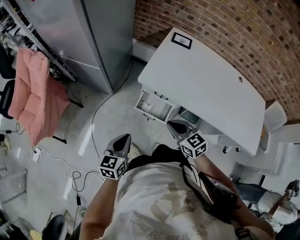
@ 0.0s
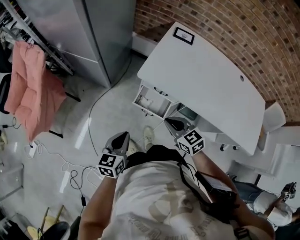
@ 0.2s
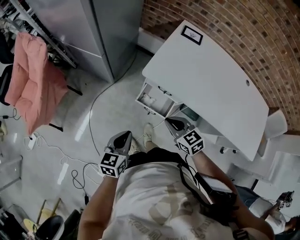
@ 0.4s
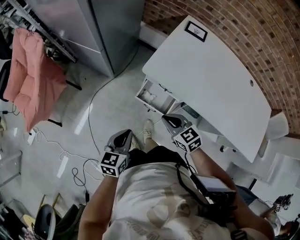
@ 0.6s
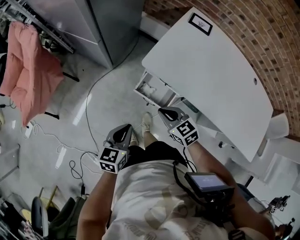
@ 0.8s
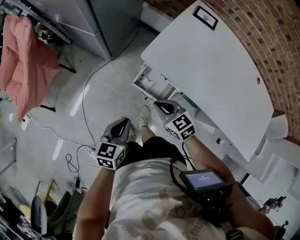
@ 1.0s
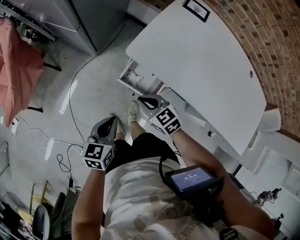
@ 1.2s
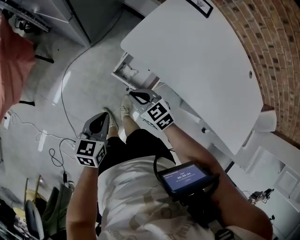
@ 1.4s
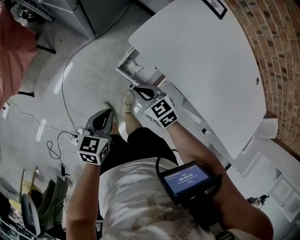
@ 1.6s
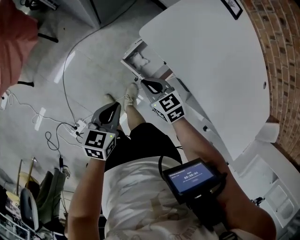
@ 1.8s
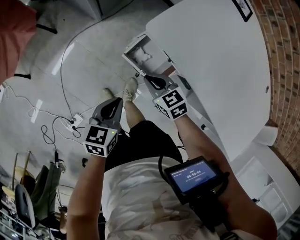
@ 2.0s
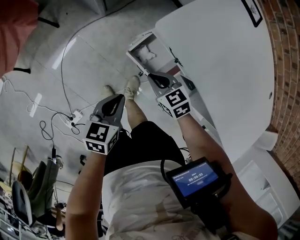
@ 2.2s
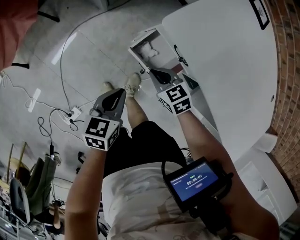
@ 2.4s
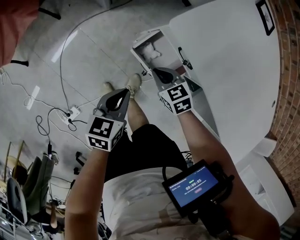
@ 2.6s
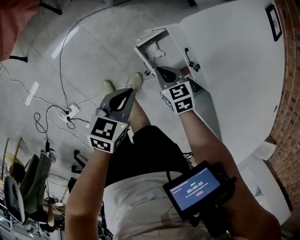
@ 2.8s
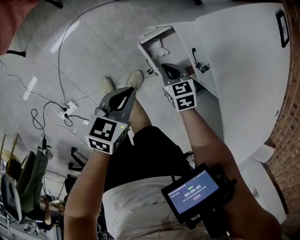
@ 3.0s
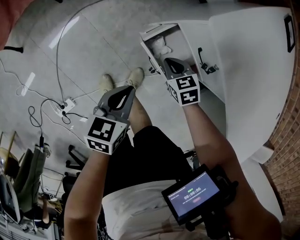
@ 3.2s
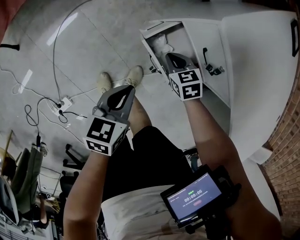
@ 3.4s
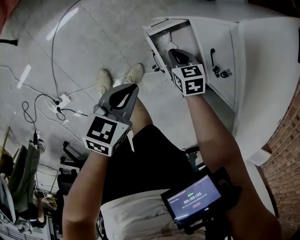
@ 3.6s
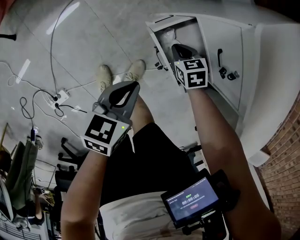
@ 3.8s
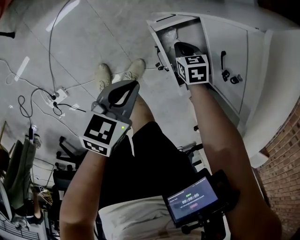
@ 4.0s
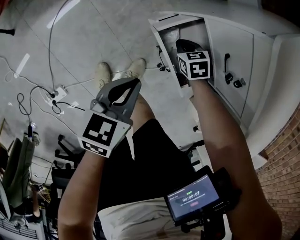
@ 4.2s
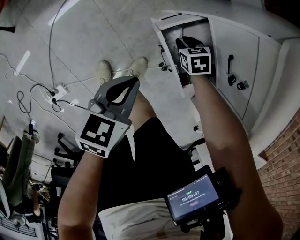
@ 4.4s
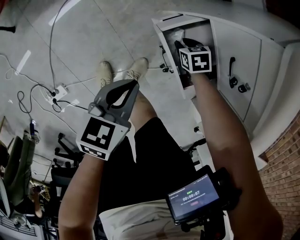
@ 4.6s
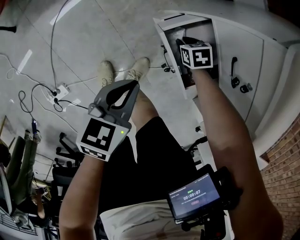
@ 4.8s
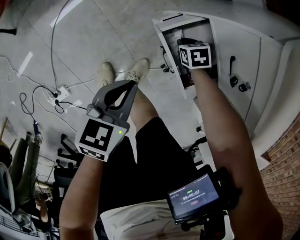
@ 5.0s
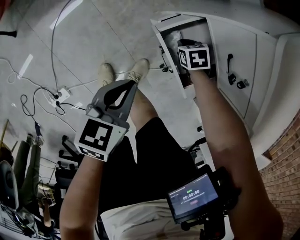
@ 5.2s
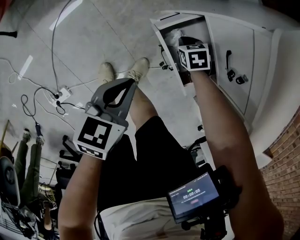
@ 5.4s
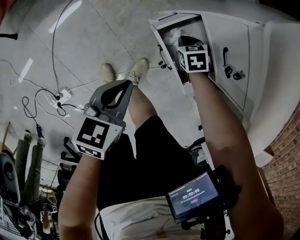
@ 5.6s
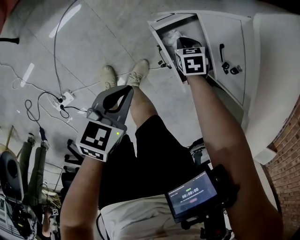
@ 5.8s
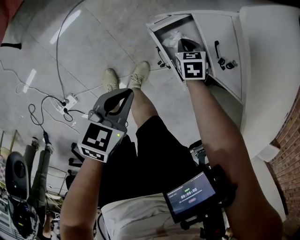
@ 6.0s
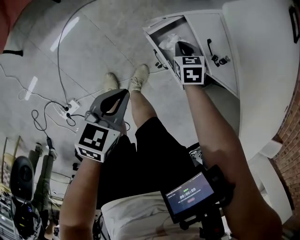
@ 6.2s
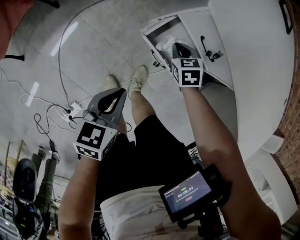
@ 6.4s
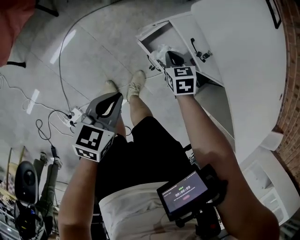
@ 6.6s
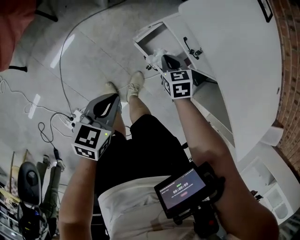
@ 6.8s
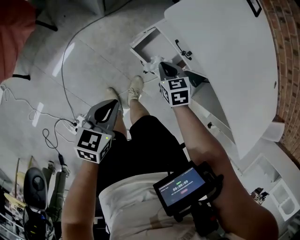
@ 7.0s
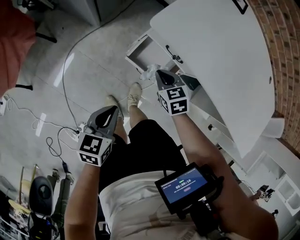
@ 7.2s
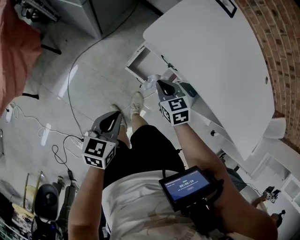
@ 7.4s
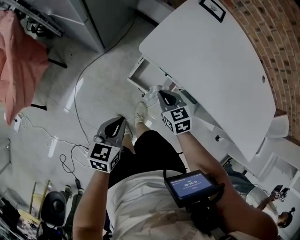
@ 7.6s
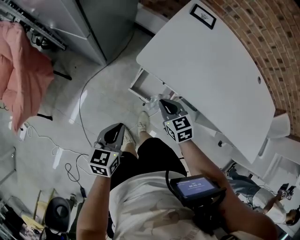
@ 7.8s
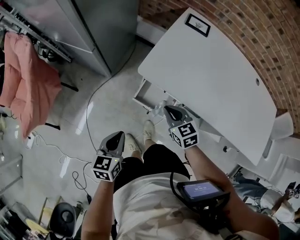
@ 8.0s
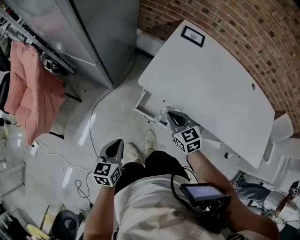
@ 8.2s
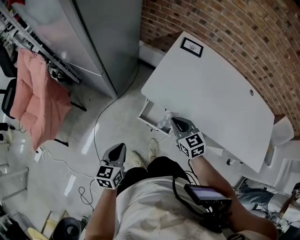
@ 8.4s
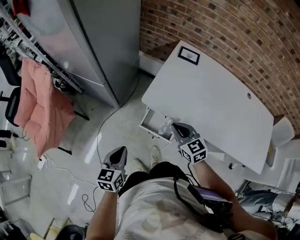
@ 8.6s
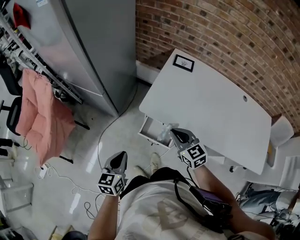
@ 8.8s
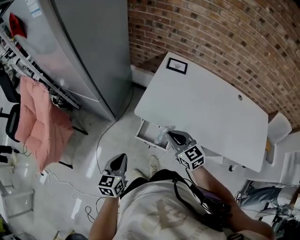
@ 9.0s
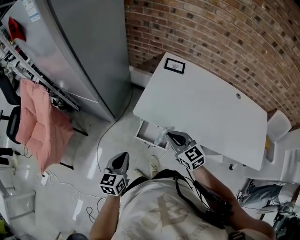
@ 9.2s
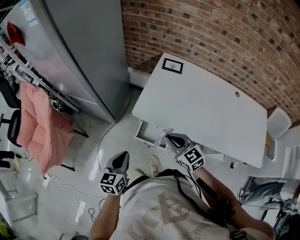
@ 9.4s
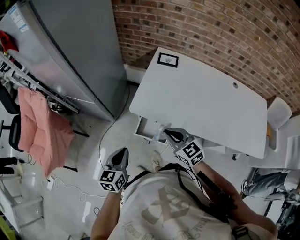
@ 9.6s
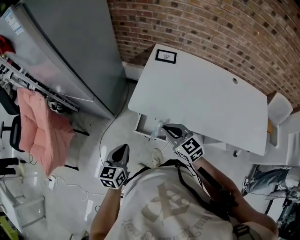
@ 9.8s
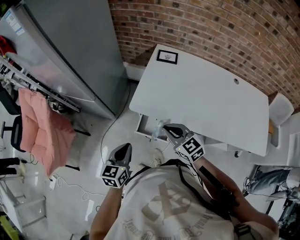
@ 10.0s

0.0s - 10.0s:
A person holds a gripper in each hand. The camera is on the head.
0.0s - 1.4s: The two grippers go some 15 cm downward and forward. The right gripper turns by approximately 20 degrees.
1.4s - 2.8s: The two grippers go roughly 15 cm downward.
2.8s - 4.2s: The left gripper moves downward, some 10 cm, while the right gripper travels downward by some 20 cm.
4.2s - 5.8s: The right gripper opens and closes again.
5.8s - 7.2s: The right gripper shifts about 25 cm upward, and turns by about 30 degrees, while the left gripper heads upward, covering about 15 cm.
7.2s - 8.6s: The left gripper moves upward, roughly 20 cm. Meanwhile the right gripper travels upward by some 30 cm, and changes its angle by about 30 degrees.
8.6s - 10.0s: The right gripper goes about 5 cm upward, while the left gripper heads to the right, covering roughly 5 cm.

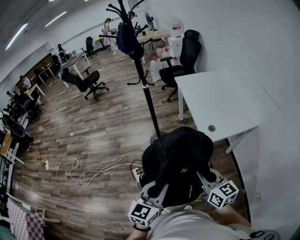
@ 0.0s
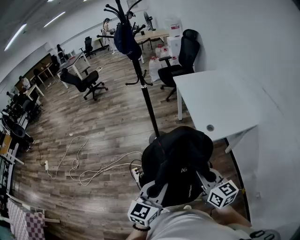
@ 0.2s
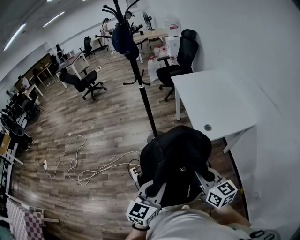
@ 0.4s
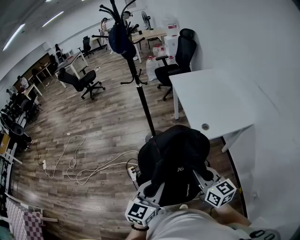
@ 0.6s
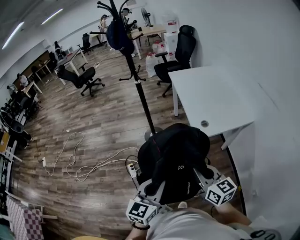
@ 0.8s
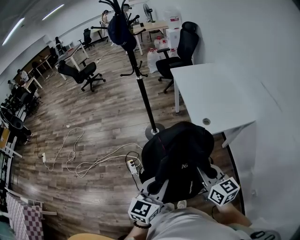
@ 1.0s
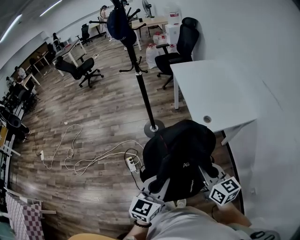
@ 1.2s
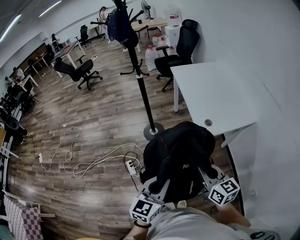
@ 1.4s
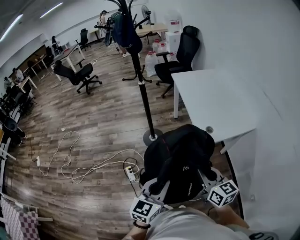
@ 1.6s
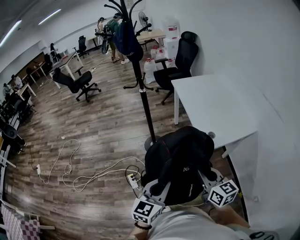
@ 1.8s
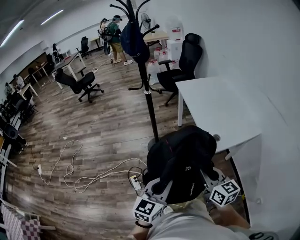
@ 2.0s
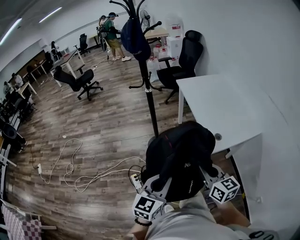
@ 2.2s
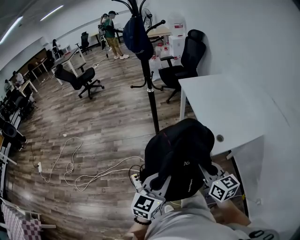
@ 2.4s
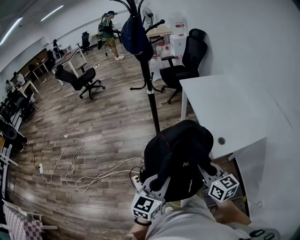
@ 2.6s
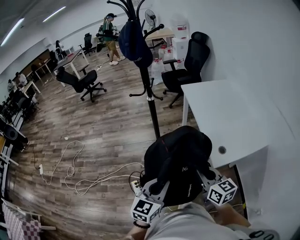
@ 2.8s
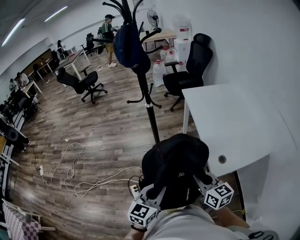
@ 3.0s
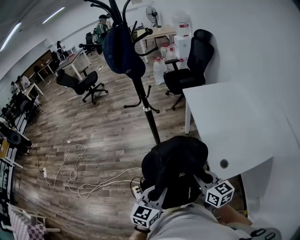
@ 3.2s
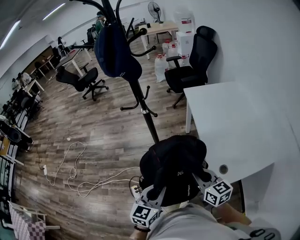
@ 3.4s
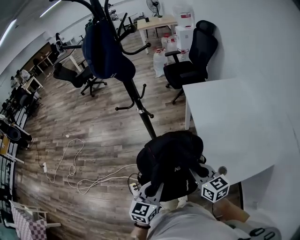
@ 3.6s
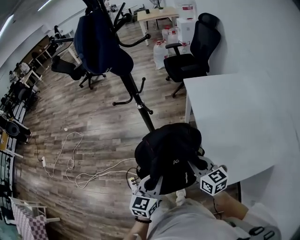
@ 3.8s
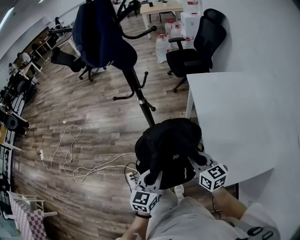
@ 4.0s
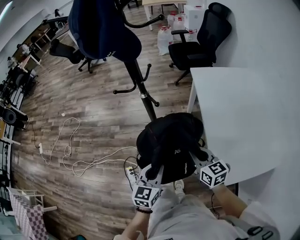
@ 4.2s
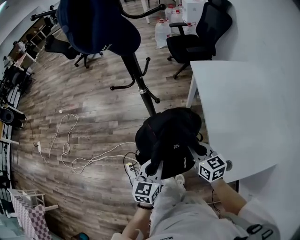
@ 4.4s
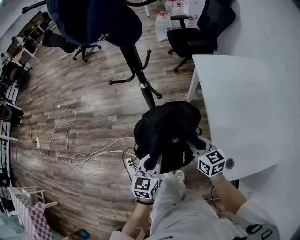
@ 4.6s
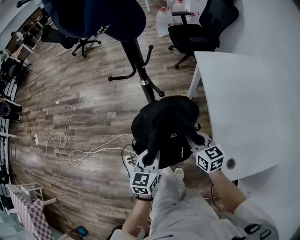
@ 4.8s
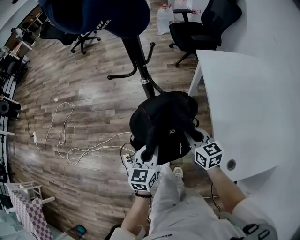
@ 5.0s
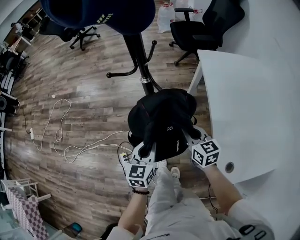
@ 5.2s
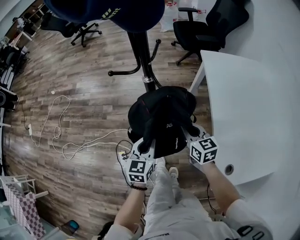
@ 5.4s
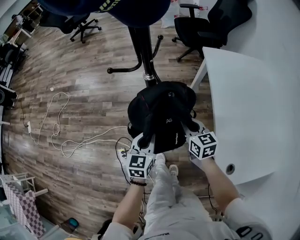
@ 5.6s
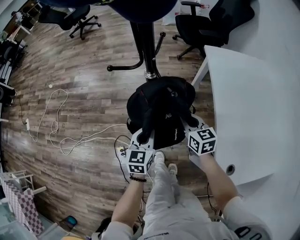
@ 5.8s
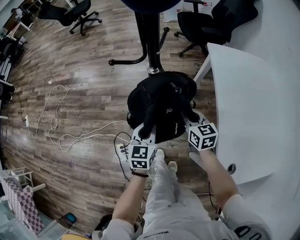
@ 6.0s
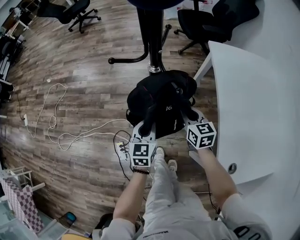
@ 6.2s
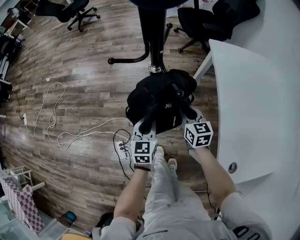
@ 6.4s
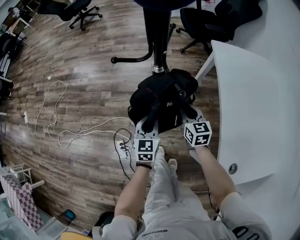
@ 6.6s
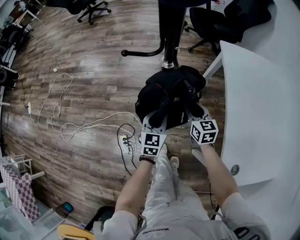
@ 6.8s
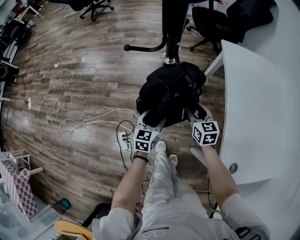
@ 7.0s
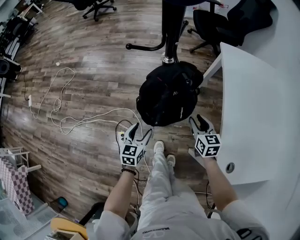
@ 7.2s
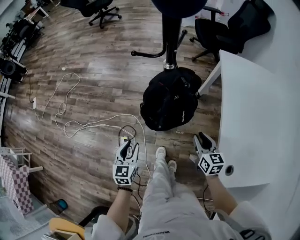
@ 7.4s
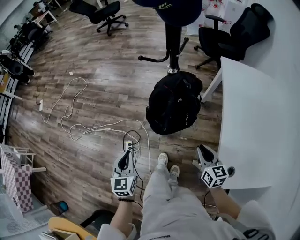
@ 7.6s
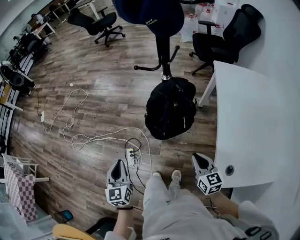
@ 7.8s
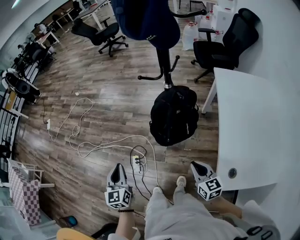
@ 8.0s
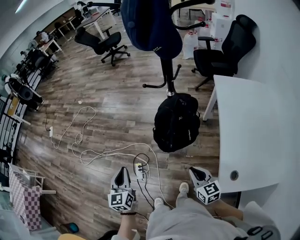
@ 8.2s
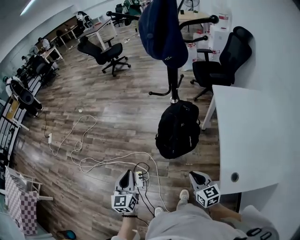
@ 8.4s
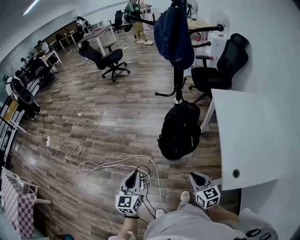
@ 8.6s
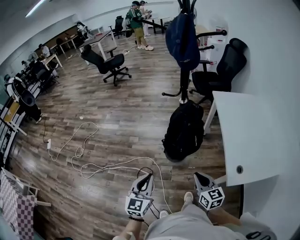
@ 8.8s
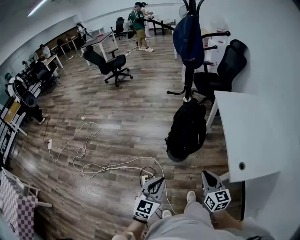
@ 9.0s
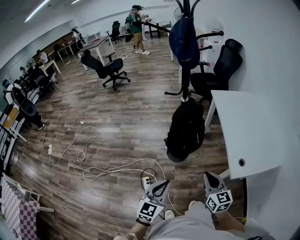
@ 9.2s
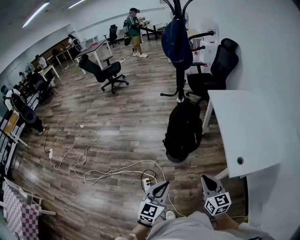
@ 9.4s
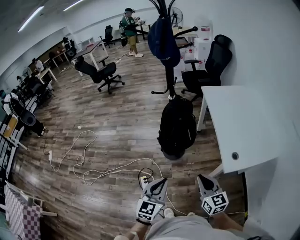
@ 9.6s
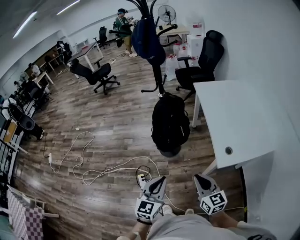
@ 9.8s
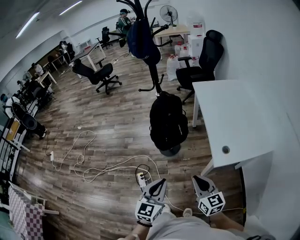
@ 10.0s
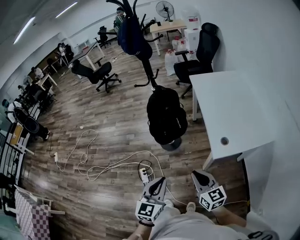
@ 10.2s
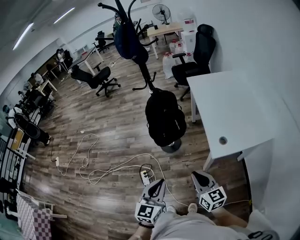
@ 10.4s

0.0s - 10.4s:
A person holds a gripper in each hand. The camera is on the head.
0.0s - 1.4s: The grippers stay close to where they were, moving slightly.
1.4s - 3.0s: The two grippers go roughly 25 cm forward.
3.0s - 4.4s: The left gripper moves forward and downward, some 25 cm; the right gripper is displaced forward by about 25 cm.
4.4s - 6.0s: The two grippers go approximately 20 cm forward and downward.
6.0s - 7.4s: The right gripper travels backward by about 15 cm, and opens its fingers, while the left gripper shifts roughly 20 cm backward and to the left, and opens its fingers.
7.4s - 9.0s: The left gripper moves roughly 30 cm, changes its angle by some 30 degrees, and closes up. The right gripper moves approximately 35 cm, and closes up.
9.0s - 10.4s: The left gripper moves to the right and backward, approximately 20 cm, while the right gripper shifts roughly 20 cm backward and to the right.

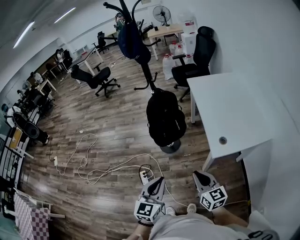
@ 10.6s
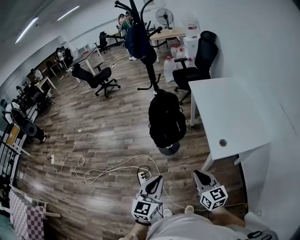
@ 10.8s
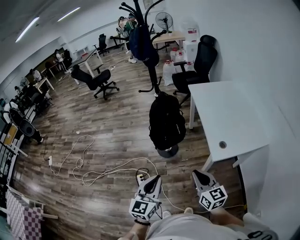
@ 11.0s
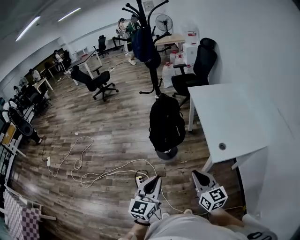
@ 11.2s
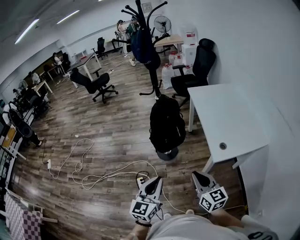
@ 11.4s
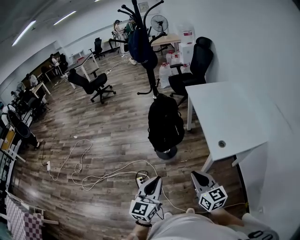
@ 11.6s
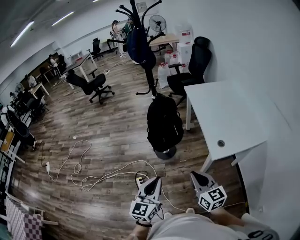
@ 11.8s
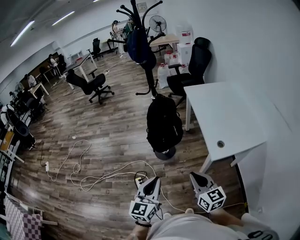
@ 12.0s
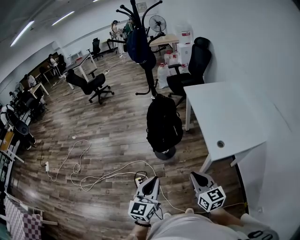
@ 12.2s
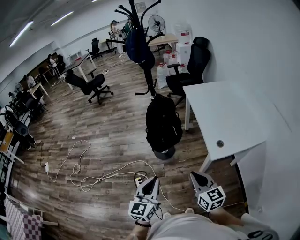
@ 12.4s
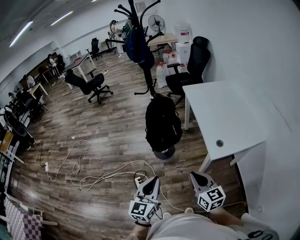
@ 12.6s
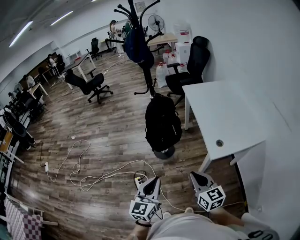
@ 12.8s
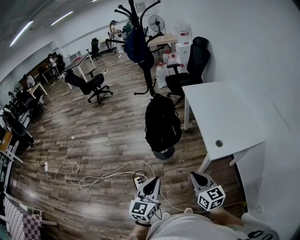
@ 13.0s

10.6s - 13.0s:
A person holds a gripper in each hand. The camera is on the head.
10.6s - 11.8s: Both grippers move to the left, about 5 cm.
11.8s - 13.0s: The grippers stay close to where they were, moving slightly.

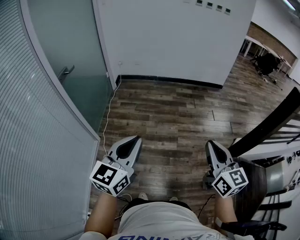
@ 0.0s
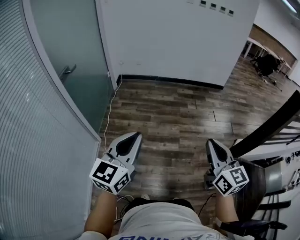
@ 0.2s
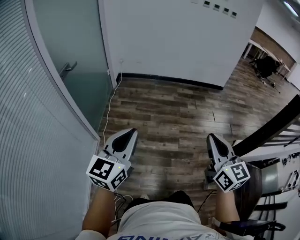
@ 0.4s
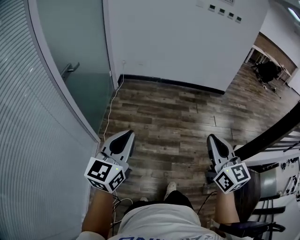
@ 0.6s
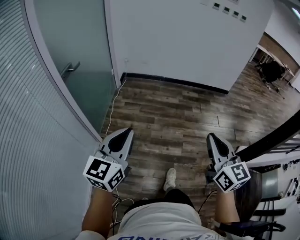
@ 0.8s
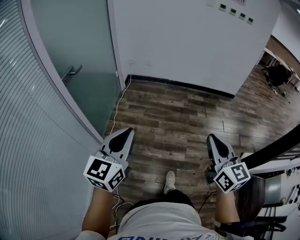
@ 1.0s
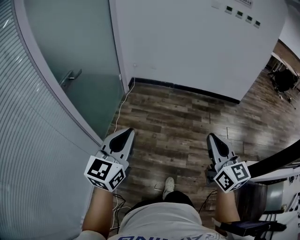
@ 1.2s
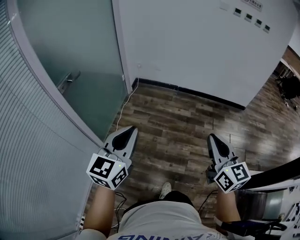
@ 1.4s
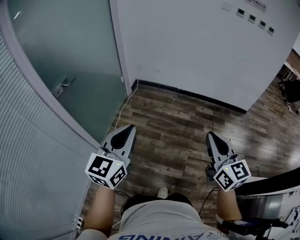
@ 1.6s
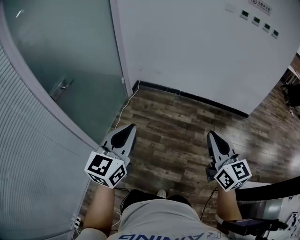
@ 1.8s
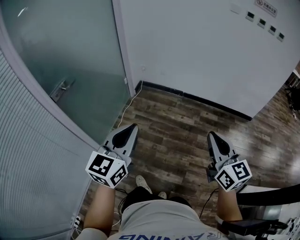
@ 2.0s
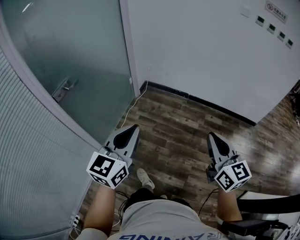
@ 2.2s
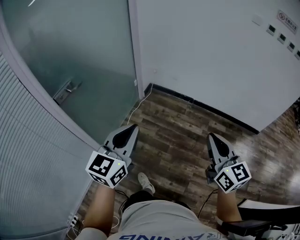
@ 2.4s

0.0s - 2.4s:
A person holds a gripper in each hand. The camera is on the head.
0.0s - 1.2s: Both grippers move forward and to the left, about 25 cm.
1.2s - 2.4s: The grippers both shift forward by about 30 cm.
